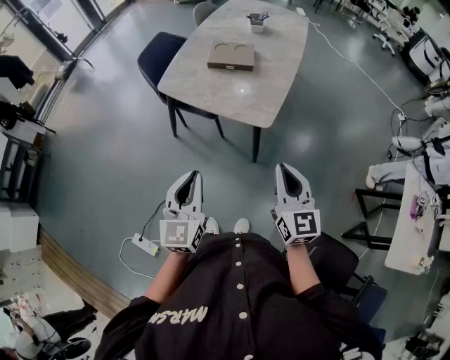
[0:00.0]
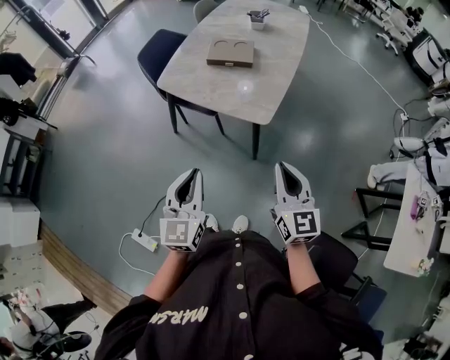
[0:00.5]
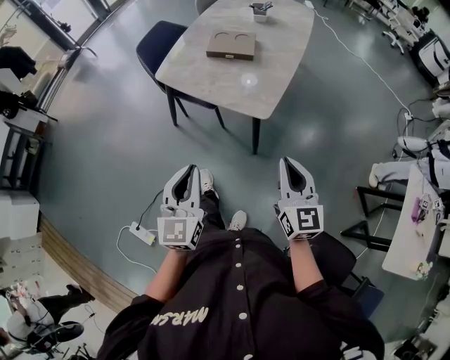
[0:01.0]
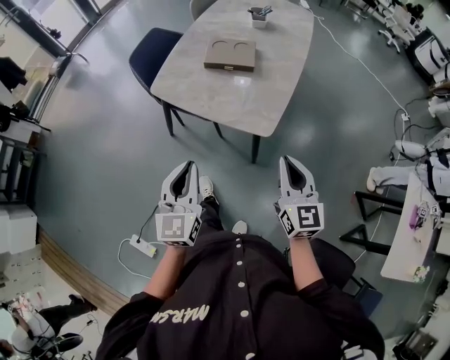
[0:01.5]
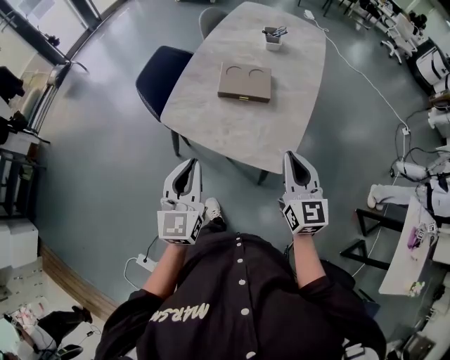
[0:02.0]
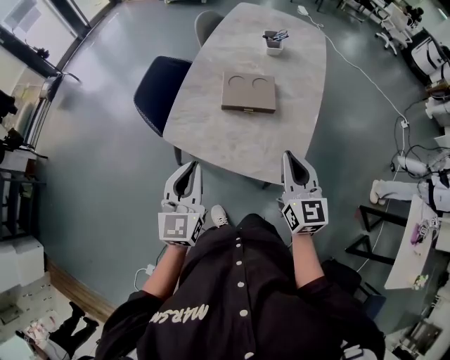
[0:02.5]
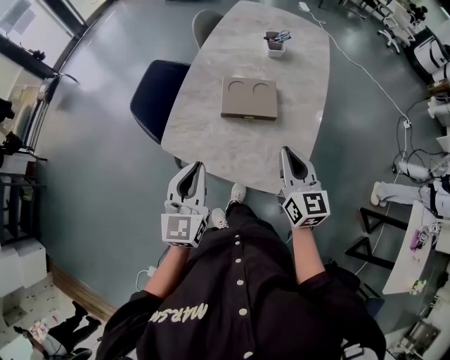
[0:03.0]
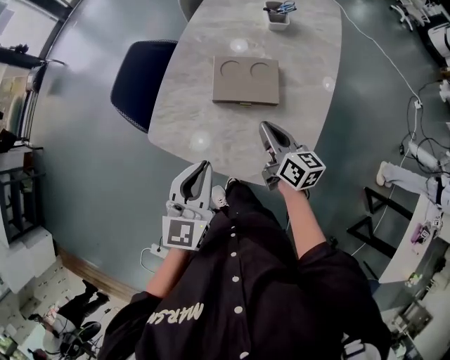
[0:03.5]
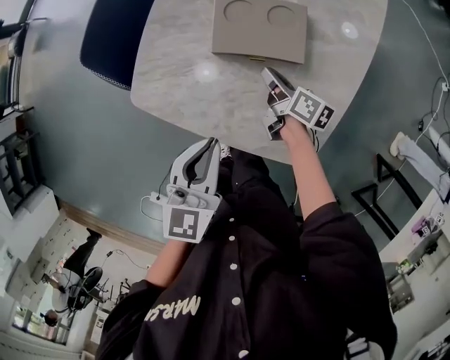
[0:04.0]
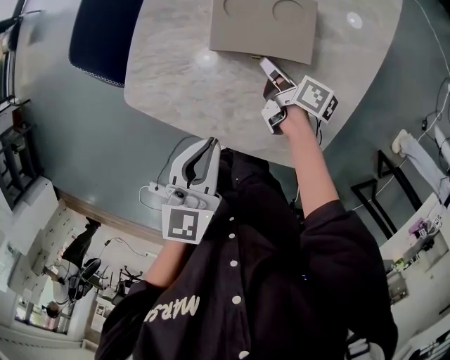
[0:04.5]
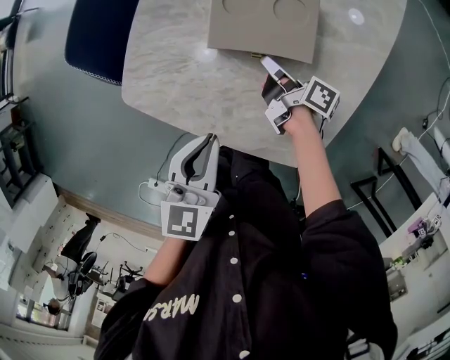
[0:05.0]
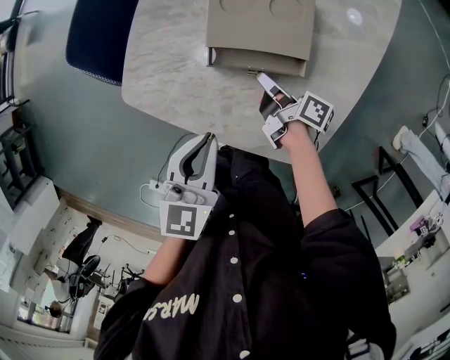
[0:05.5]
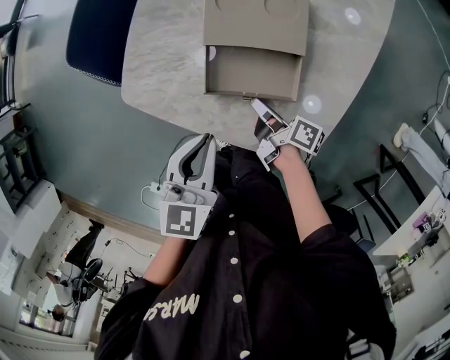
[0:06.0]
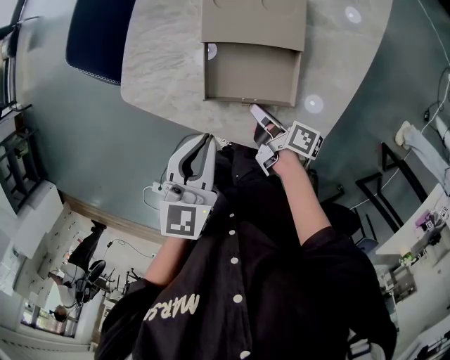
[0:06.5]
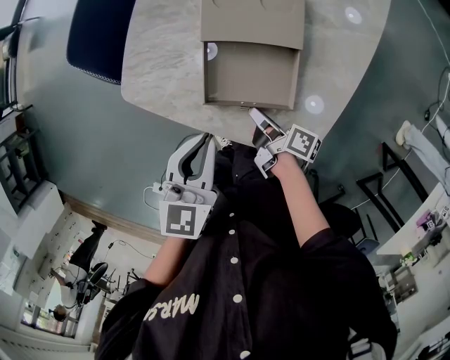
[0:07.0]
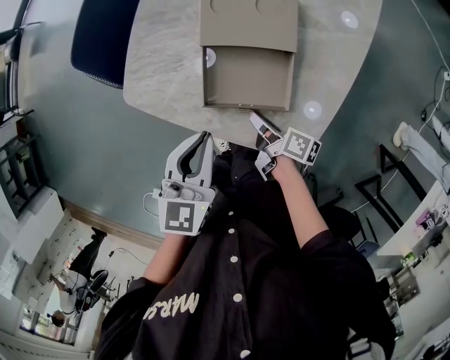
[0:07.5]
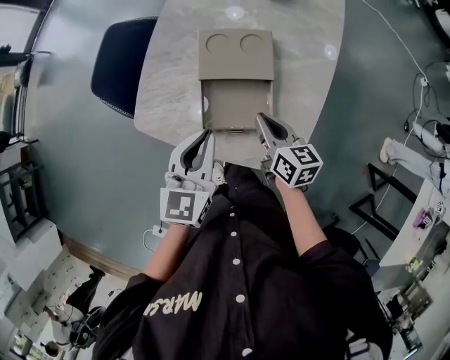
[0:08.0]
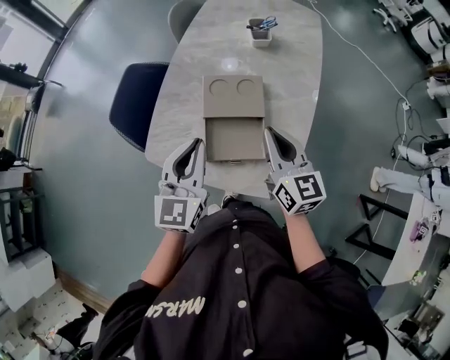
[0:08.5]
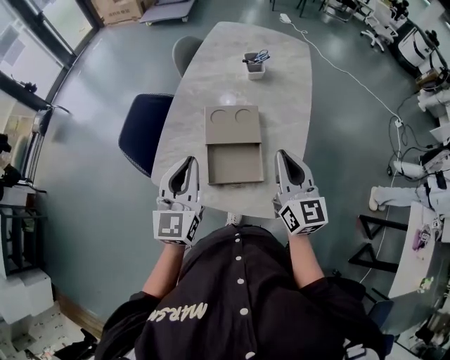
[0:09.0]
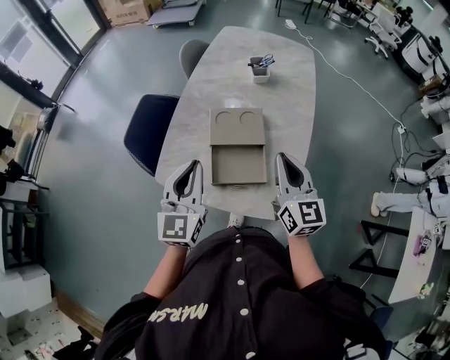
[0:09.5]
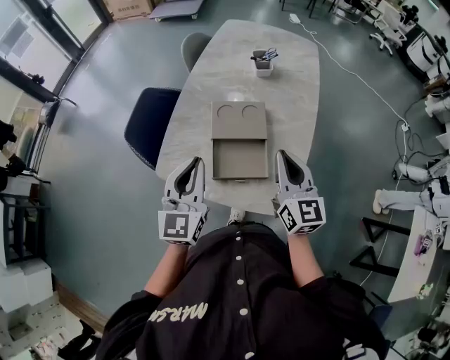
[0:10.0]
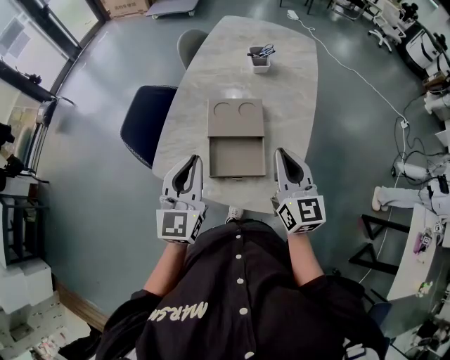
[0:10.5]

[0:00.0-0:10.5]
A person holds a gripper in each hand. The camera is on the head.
0:00.0 to 0:02.0: Both grippers move forward, about 25 cm.
0:02.0 to 0:04.0: The right gripper heads downward and forward, covering roughly 40 cm, and rotates around the line of its fingers by approximately 60 degrees, clockwise from behind, while the left gripper travels forward and downward by some 20 cm, and turns by approximately 20 degrees.
0:04.0 to 0:06.5: The right gripper is displaced backward by roughly 15 cm, and turns by some 20 degrees.
0:06.5 to 0:08.5: The left gripper is displaced upward by approximately 15 cm, and rotates approximately 30 degrees; the right gripper shifts about 30 cm upward, and rotates around the line of its fingers by approximately 70 degrees, counterclockwise from behind.
0:08.5 to 0:10.5: The right gripper shifts by about 5 cm.

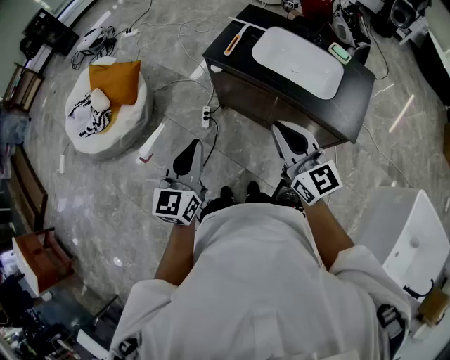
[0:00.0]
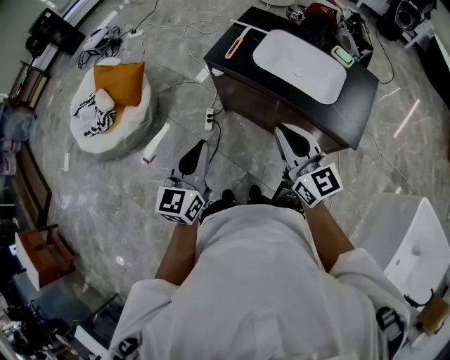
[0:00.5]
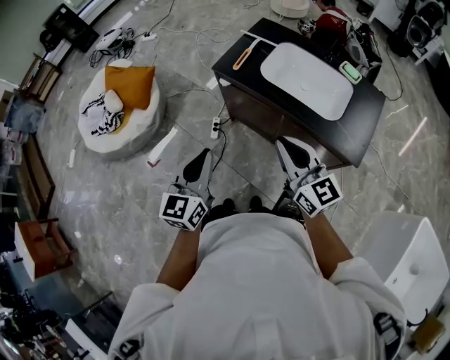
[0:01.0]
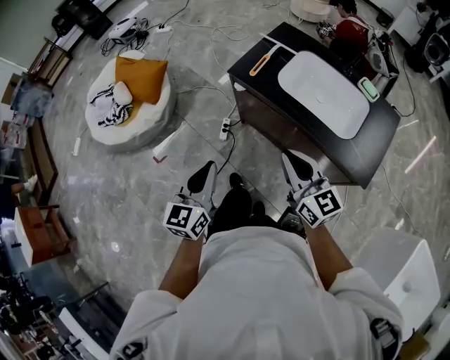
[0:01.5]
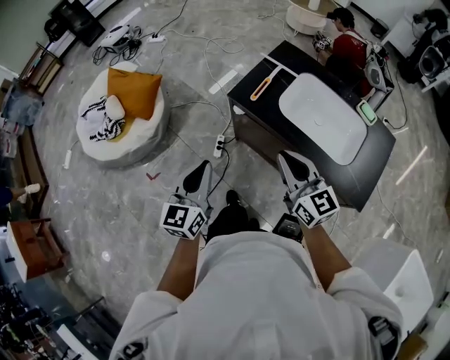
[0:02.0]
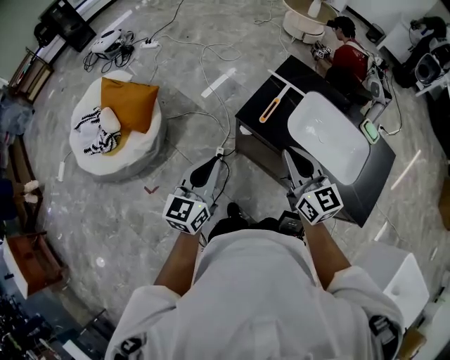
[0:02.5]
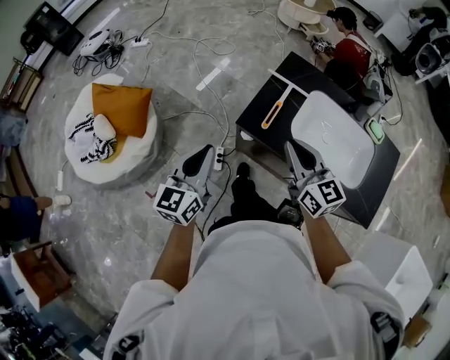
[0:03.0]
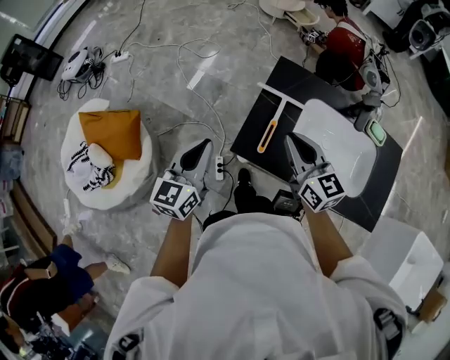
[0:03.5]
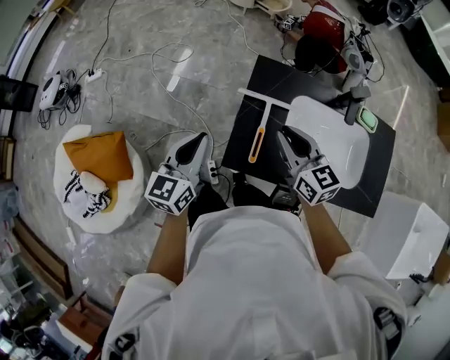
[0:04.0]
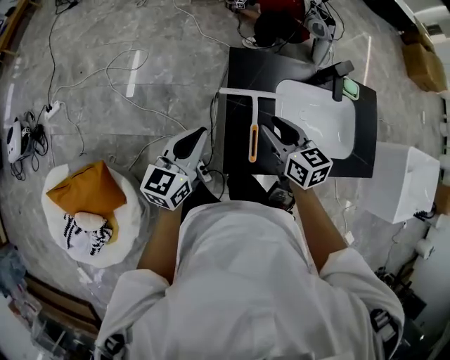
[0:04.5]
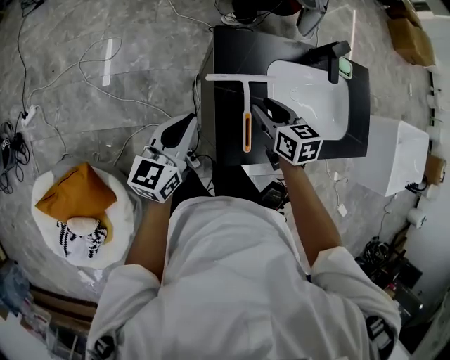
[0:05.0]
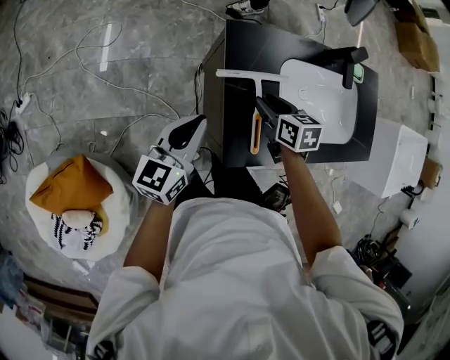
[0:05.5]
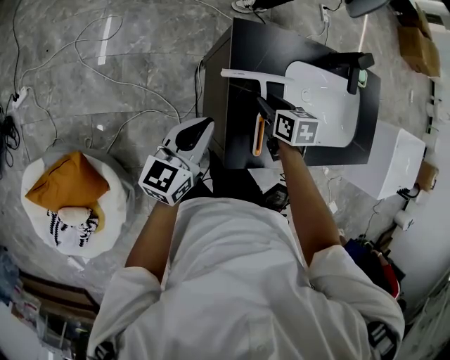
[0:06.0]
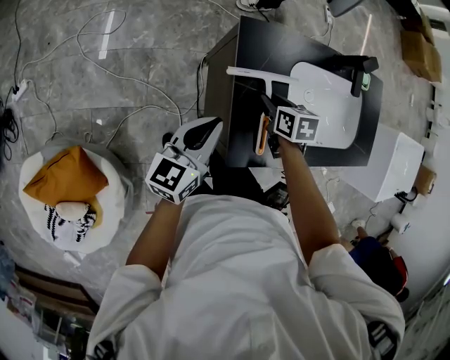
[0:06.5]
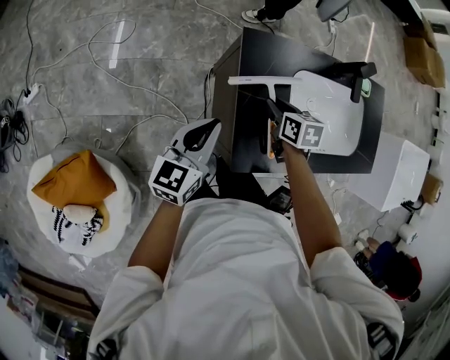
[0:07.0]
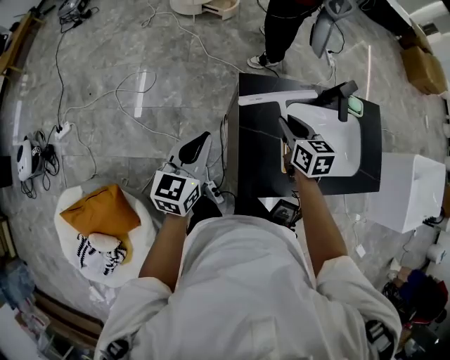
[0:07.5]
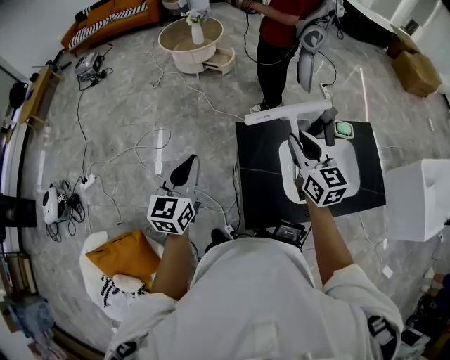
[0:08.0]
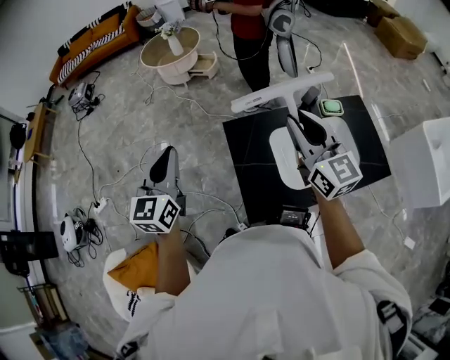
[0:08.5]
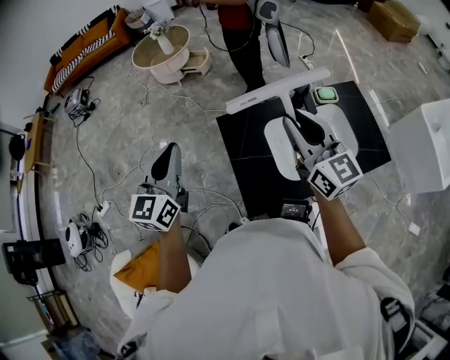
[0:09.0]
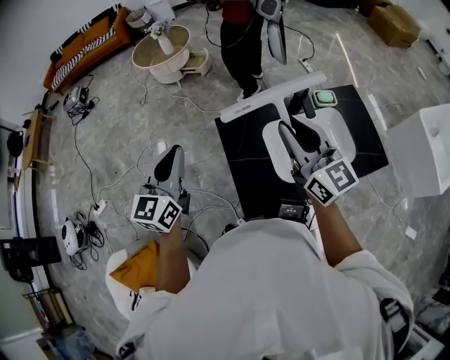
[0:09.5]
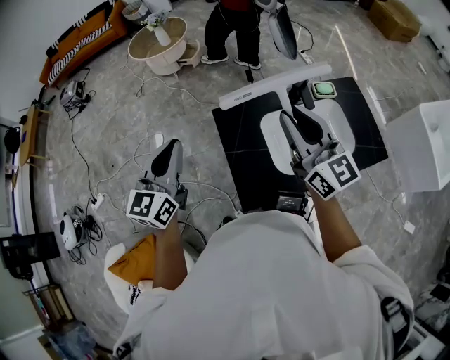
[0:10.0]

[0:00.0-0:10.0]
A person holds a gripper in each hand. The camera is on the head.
0:00.0 to 0:02.0: The grippers both shift forward by about 15 cm.
0:02.0 to 0:04.0: The left gripper ends up approximately 50 cm from where it was, and rotates some 30 degrees; the right gripper shifts by roughly 40 cm, and turns by roughly 30 degrees.
0:04.0 to 0:06.0: The two grippers go approximately 20 cm downward and forward. The right gripper points its fingers about 40 degrees further downward, and opens its fingers. The left gripper rotates some 30 degrees.
0:06.0 to 0:08.0: The left gripper moves upward, roughly 20 cm, and swivels some 30 degrees. The right gripper moves upward, roughly 35 cm, and tips its fingers upward by approximately 40 degrees.
0:08.0 to 0:10.0: The left gripper is displaced to the right and upward by some 10 cm; the right gripper travels upward, backward and to the right by about 15 cm.

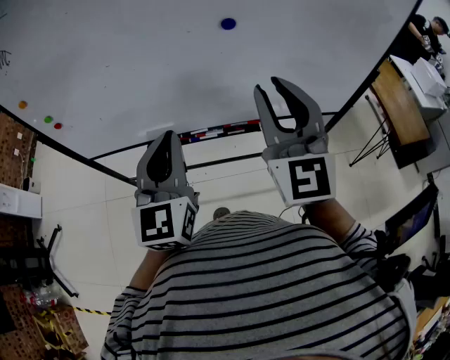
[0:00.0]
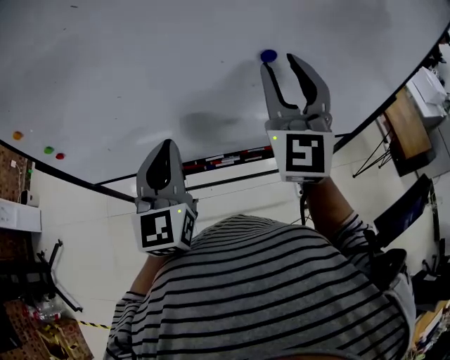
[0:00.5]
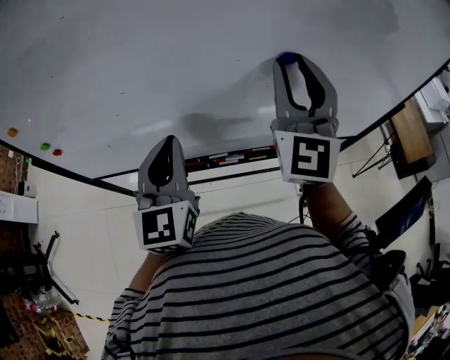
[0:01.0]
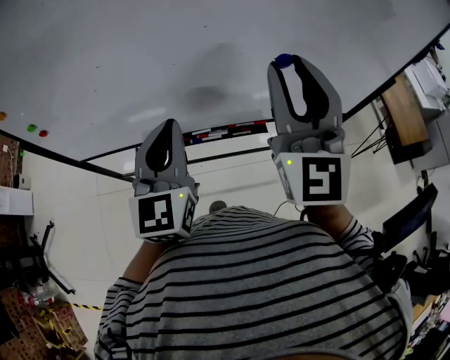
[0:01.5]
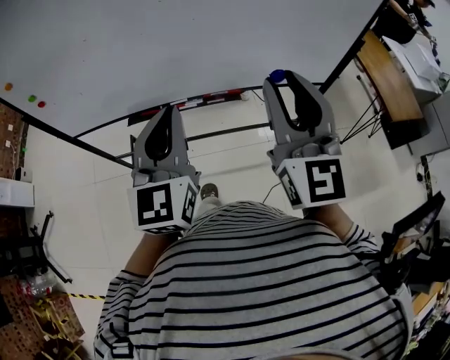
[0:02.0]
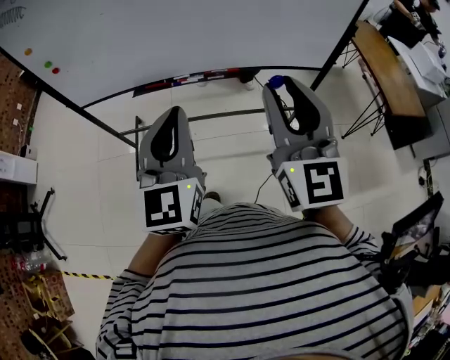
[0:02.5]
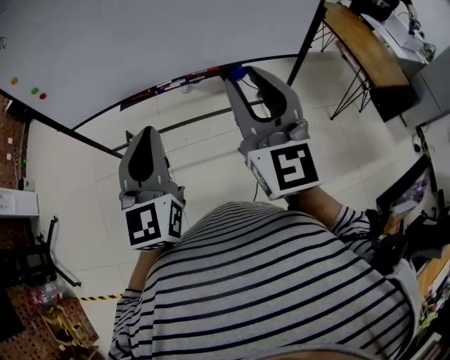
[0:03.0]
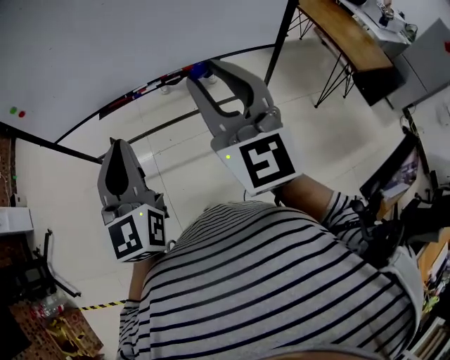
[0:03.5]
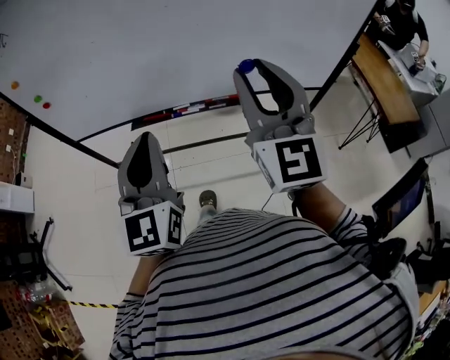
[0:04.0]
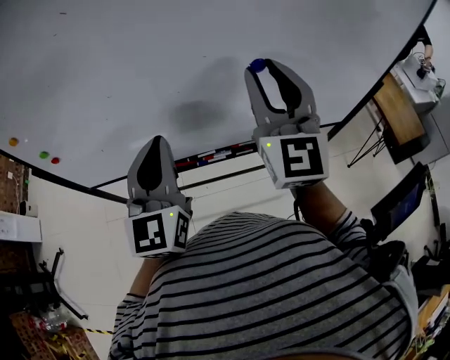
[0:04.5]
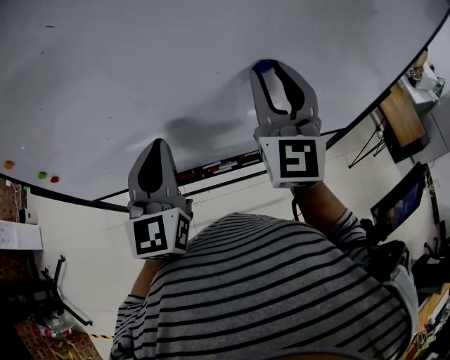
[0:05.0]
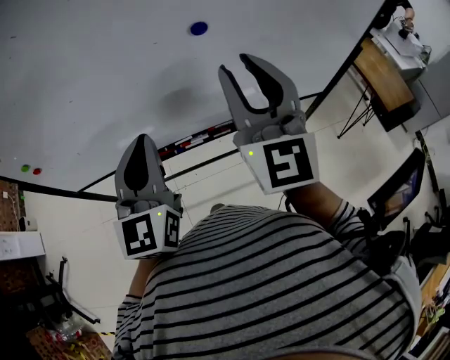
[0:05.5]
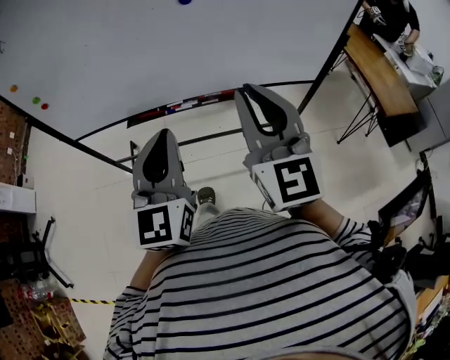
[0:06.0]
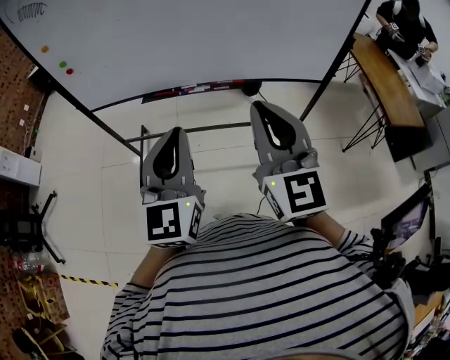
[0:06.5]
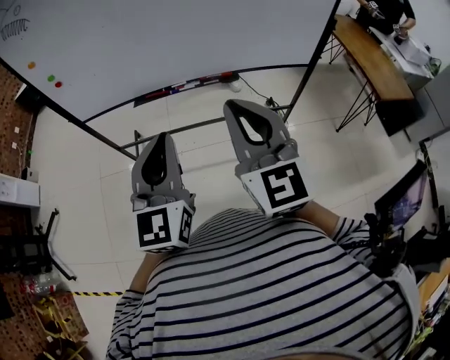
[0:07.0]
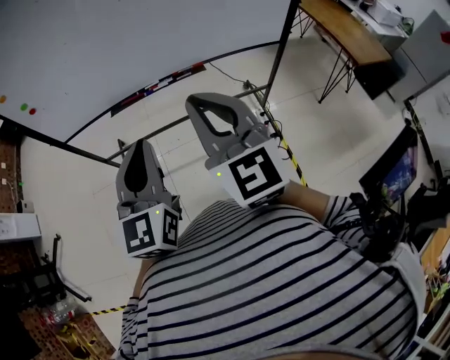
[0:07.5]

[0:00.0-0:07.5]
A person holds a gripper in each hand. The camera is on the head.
0:00.0 to 0:02.0: Both grippers travel together backward and to the right, some 10 cm.
0:02.0 to 0:04.0: The left gripper heads to the left, covering roughly 5 cm, and moves approximately 15 cm backward and comes back, while the right gripper goes backward and returns, about 10 cm each way.
0:04.0 to 0:05.5: Both grippers move forward, approximately 15 cm.
0:05.5 to 0:07.5: Both grippers move backward, roughly 25 cm. The right gripper closes up.
